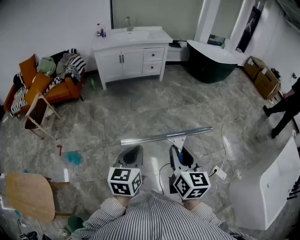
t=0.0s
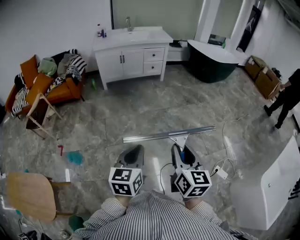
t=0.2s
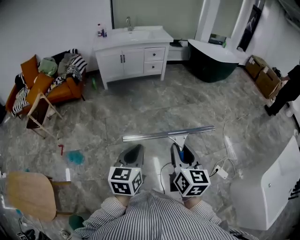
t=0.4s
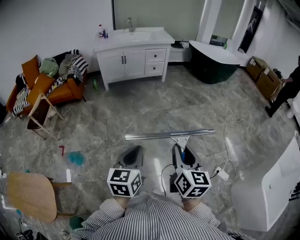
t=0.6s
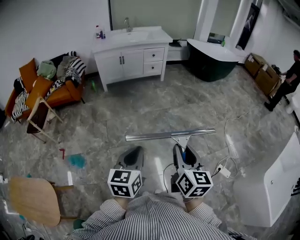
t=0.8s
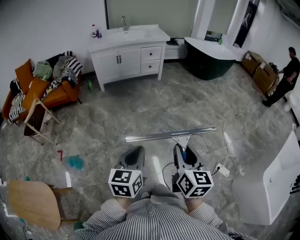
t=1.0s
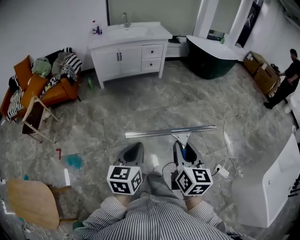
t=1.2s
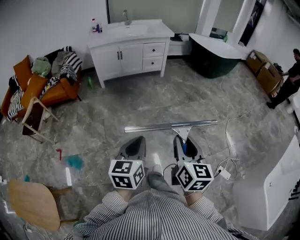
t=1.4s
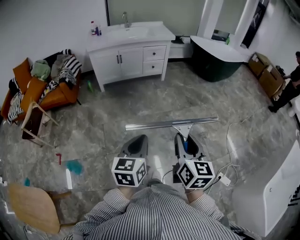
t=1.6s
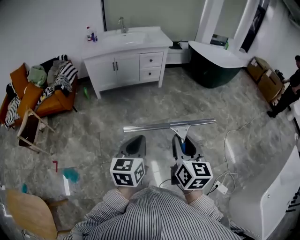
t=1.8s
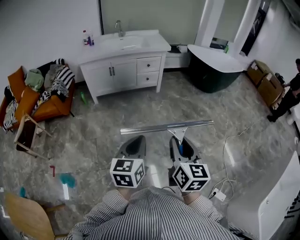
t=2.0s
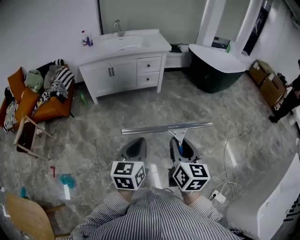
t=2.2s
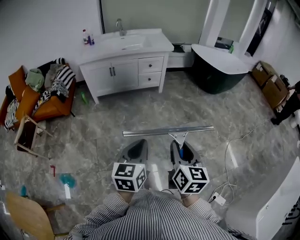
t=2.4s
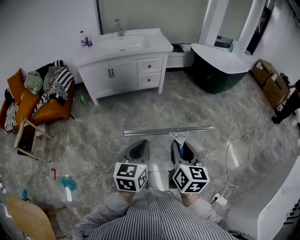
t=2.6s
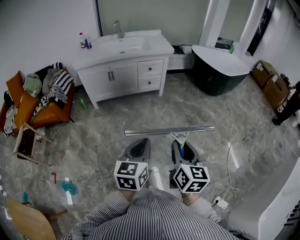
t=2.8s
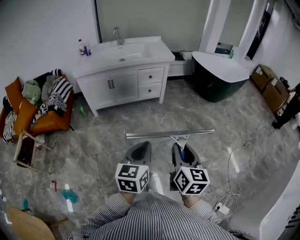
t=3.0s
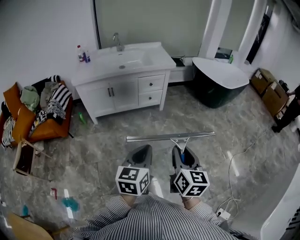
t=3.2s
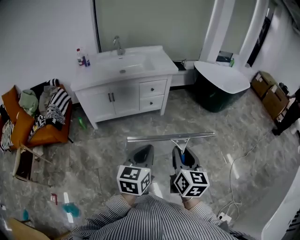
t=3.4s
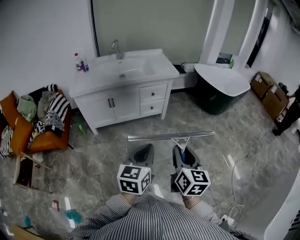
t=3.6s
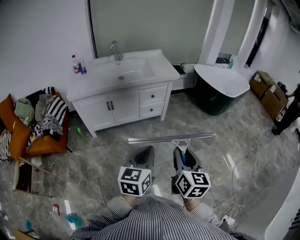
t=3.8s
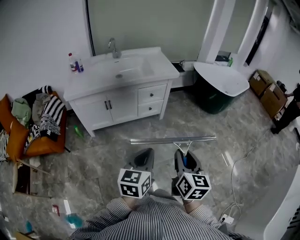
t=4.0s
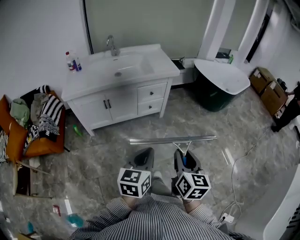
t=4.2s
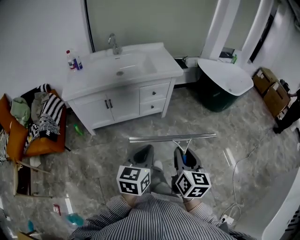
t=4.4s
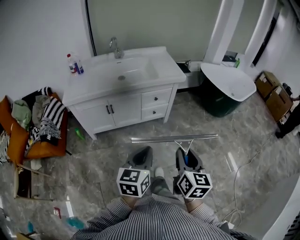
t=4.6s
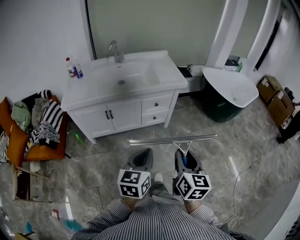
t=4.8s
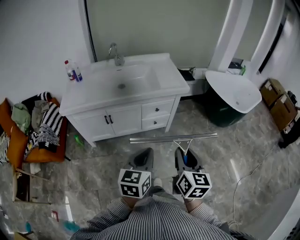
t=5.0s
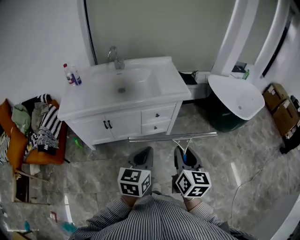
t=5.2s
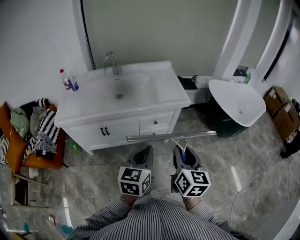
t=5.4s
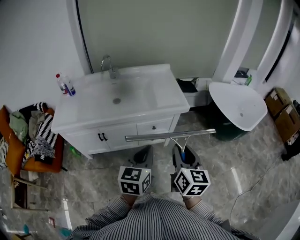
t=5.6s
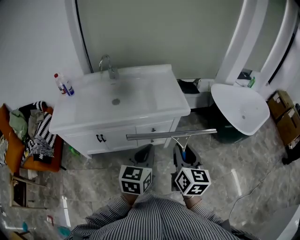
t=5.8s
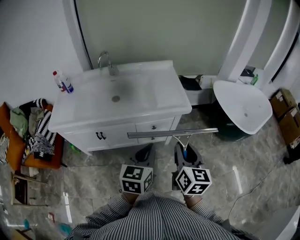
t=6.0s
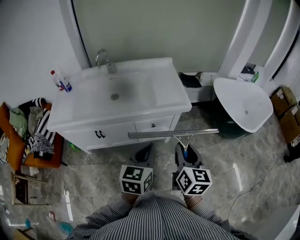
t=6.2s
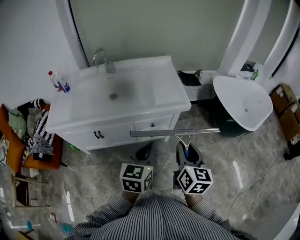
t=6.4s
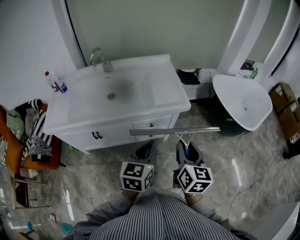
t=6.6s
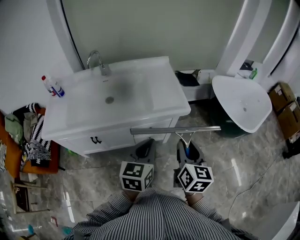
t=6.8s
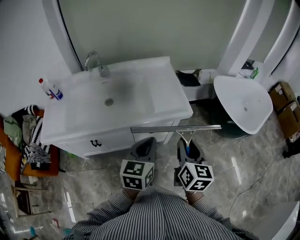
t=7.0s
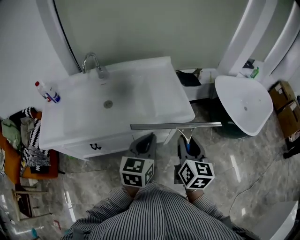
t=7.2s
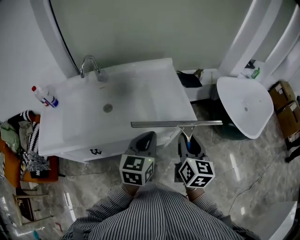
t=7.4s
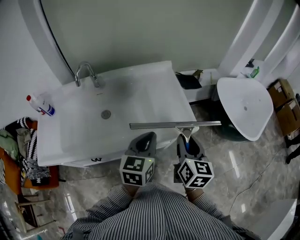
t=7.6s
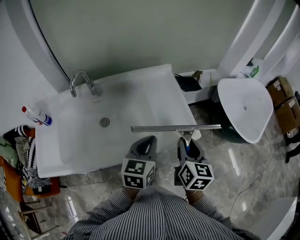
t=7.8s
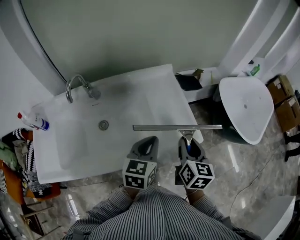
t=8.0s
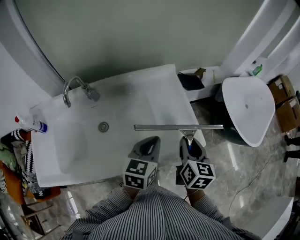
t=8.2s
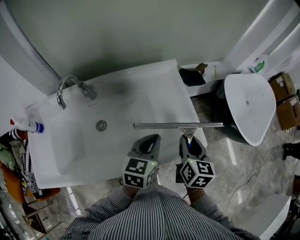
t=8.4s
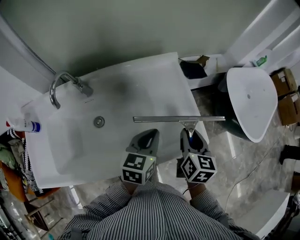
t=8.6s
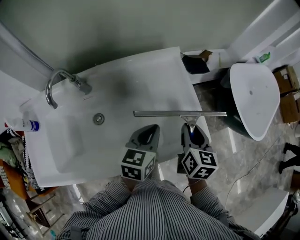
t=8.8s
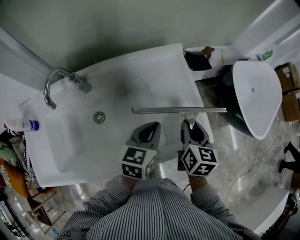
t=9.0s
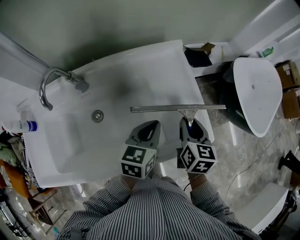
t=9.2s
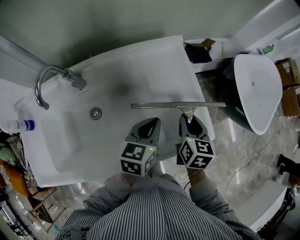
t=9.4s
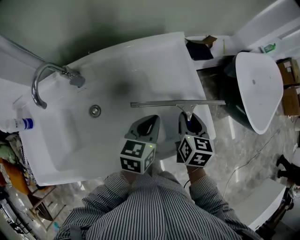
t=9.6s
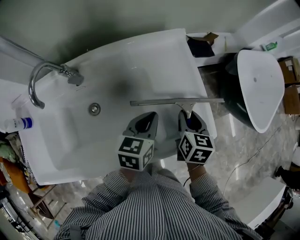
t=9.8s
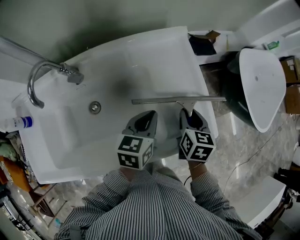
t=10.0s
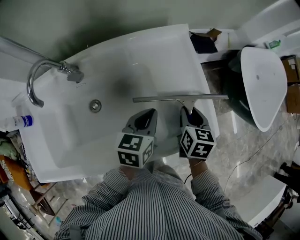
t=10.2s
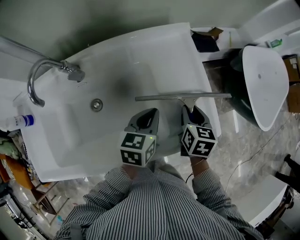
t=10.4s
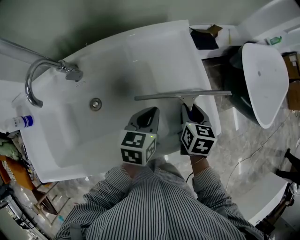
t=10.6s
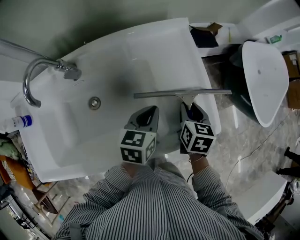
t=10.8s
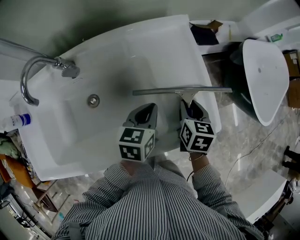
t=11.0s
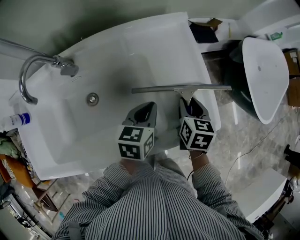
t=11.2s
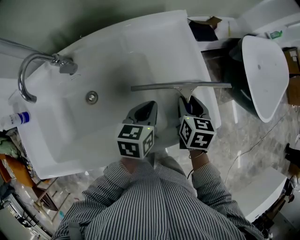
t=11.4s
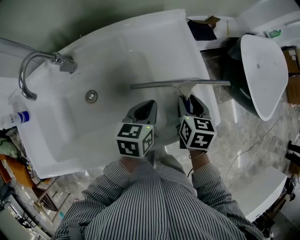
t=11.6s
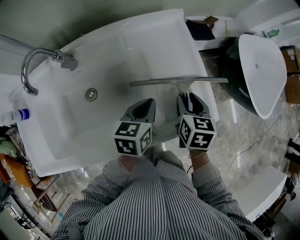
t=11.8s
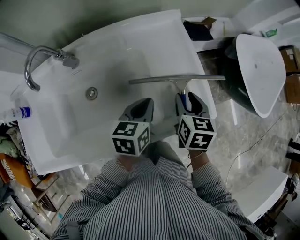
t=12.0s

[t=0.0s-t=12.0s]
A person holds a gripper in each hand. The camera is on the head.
t=0.0s to t=1.6s: Both grippers move forward, roughly 20 cm.
t=1.6s to t=3.0s: Both grippers move forward, approximately 30 cm.
t=3.0s to t=4.4s: The grippers both shift forward and to the left by about 30 cm.
t=4.4s to t=6.0s: The grippers both shift forward by some 40 cm.
t=6.0s to t=7.6s: The grippers both shift forward by some 25 cm.
t=7.6s to t=9.0s: Both grippers travel together forward and downward, about 20 cm.
t=9.0s to t=10.4s: The two grippers go some 10 cm downward.
t=10.4s to t=12.0s: There are only small adjustments of the grippers.

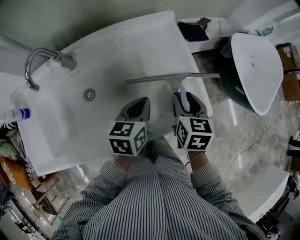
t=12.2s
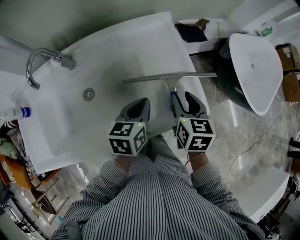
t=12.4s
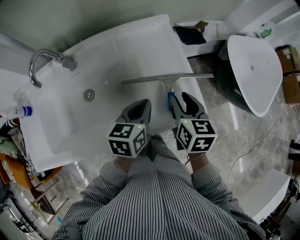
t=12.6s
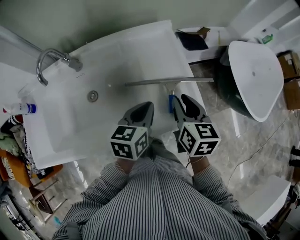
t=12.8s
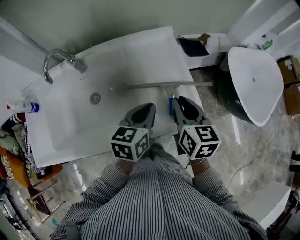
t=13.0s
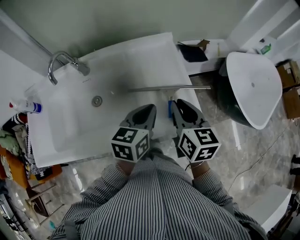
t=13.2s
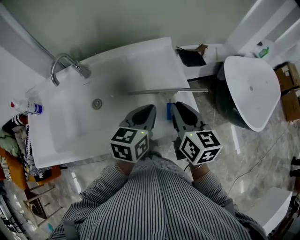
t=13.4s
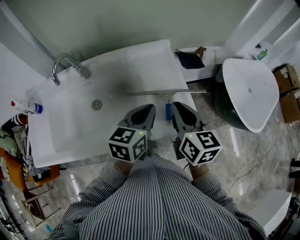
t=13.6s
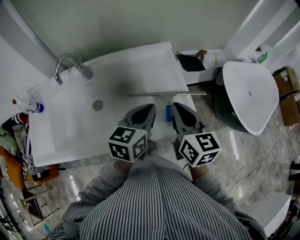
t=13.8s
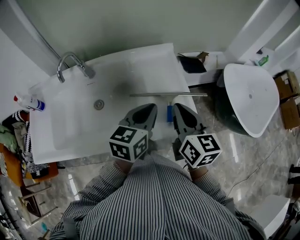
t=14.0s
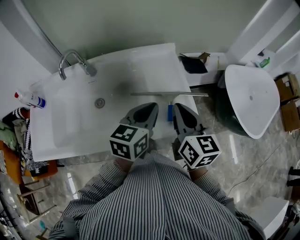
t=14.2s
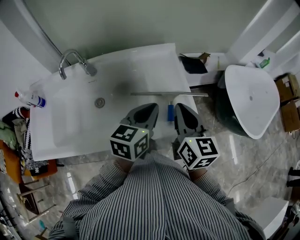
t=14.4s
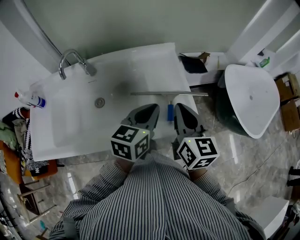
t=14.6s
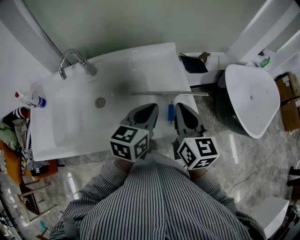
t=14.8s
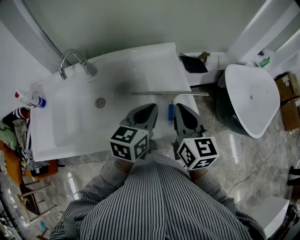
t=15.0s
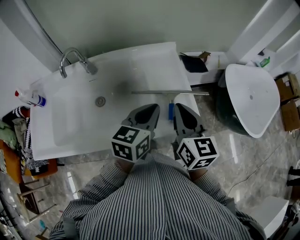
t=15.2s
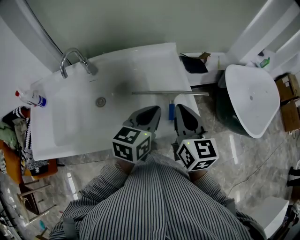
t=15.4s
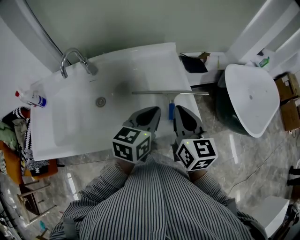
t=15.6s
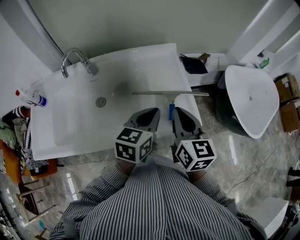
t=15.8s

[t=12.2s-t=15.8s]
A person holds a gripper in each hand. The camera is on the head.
t=12.2s to t=14.0s: The grippers both shift upward by some 15 cm. The right gripper changes its angle by approximately 30 degrees, and closes up.
t=14.0s to t=15.8s: The grippers stay close to where they were, moving slightly.

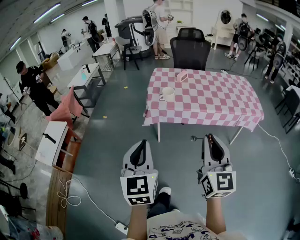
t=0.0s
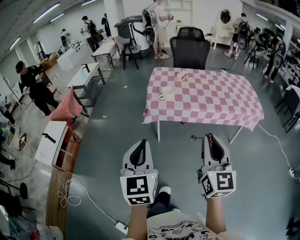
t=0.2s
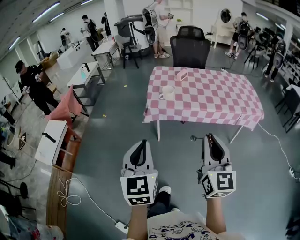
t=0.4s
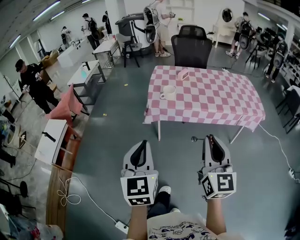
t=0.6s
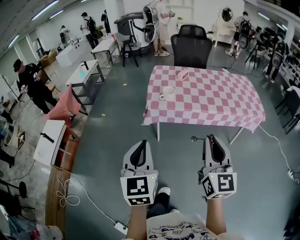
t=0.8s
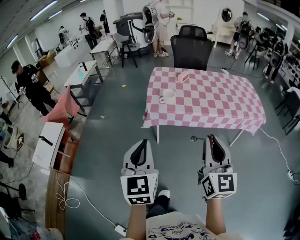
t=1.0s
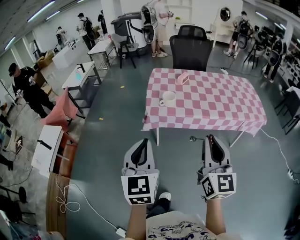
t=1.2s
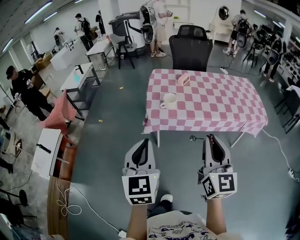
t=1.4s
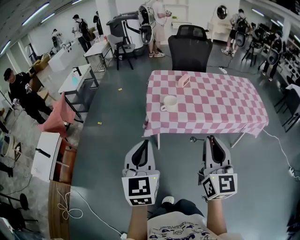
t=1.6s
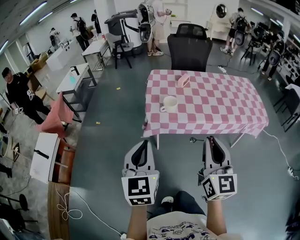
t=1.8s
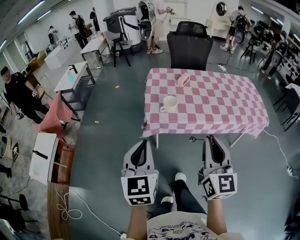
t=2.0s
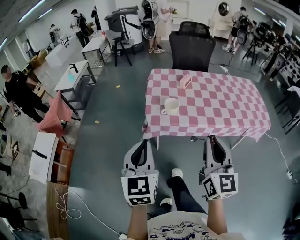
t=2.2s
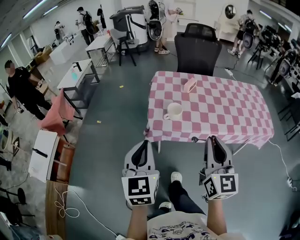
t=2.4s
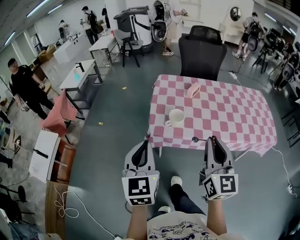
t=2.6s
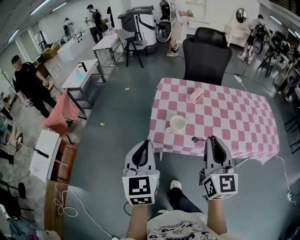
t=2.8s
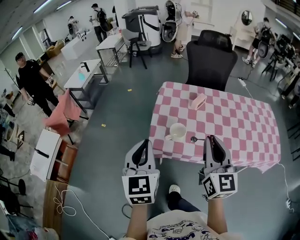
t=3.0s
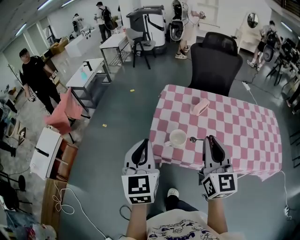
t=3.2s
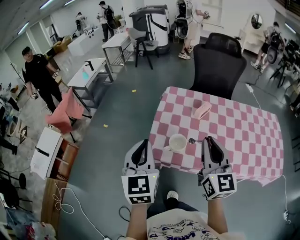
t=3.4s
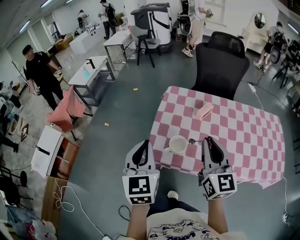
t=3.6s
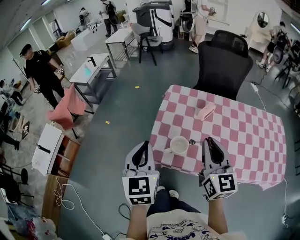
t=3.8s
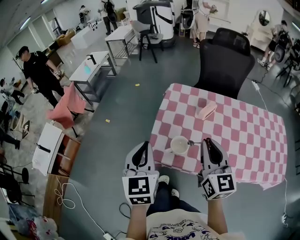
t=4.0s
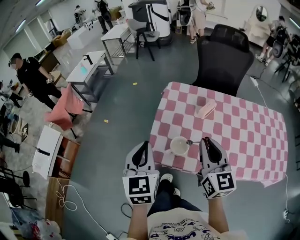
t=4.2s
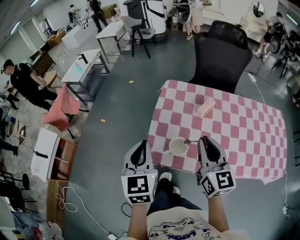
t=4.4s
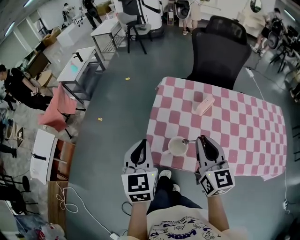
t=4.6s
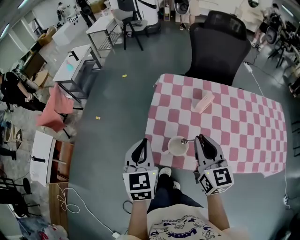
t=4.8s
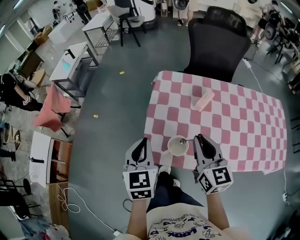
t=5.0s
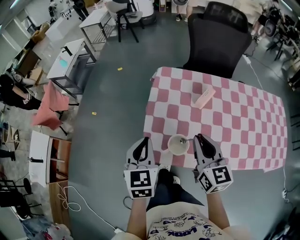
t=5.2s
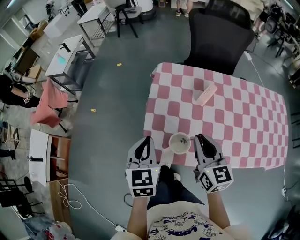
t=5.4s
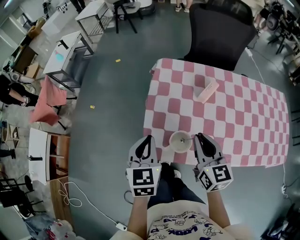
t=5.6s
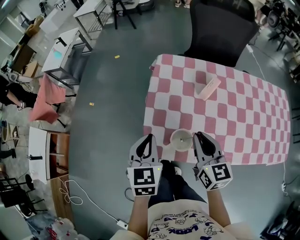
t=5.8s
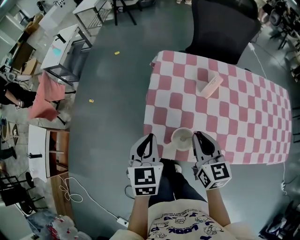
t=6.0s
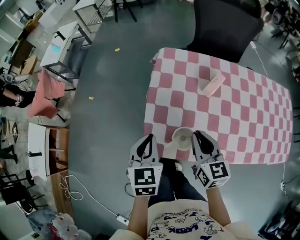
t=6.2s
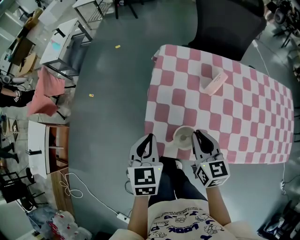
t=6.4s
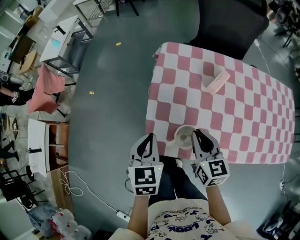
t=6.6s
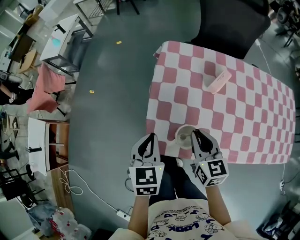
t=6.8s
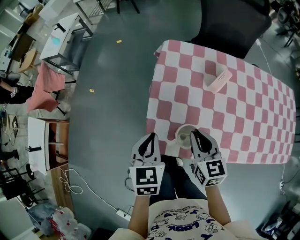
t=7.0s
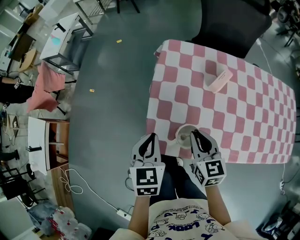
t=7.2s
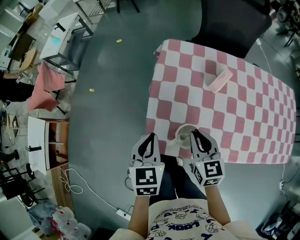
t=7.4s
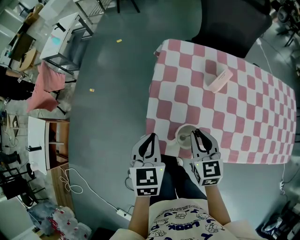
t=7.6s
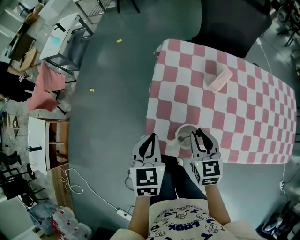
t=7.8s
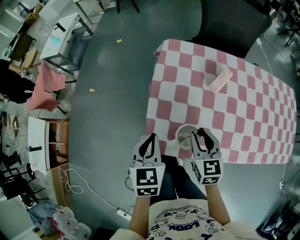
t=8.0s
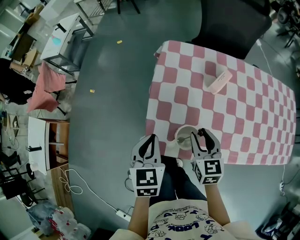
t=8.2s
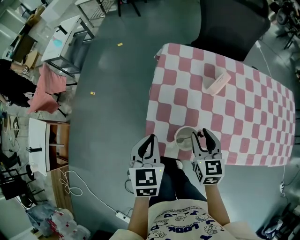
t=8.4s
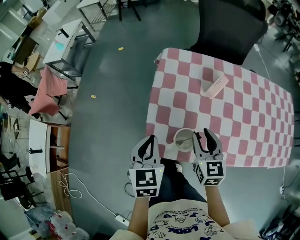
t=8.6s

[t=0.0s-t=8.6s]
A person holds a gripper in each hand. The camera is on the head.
t=0.0s to t=1.4s: The two grippers go roughly 15 cm forward.
t=1.4s to t=2.8s: The two grippers go about 25 cm forward.
t=2.8s to t=4.4s: Both grippers travel together forward, about 20 cm.
t=4.4s to t=5.8s: Both grippers travel together downward and forward, some 15 cm.
t=5.8s to t=7.2s: The right gripper is displaced downward by some 5 cm.
t=7.2s to t=8.6s: The right gripper opens up.
